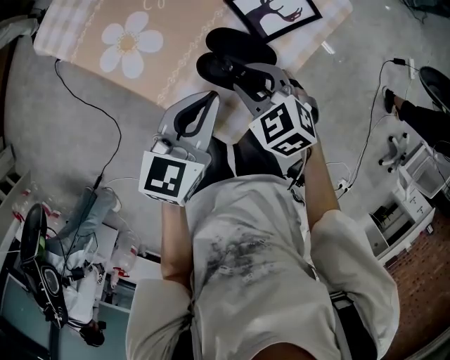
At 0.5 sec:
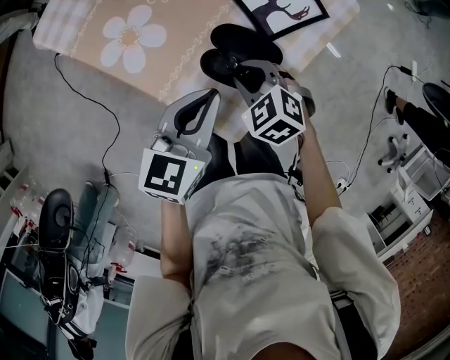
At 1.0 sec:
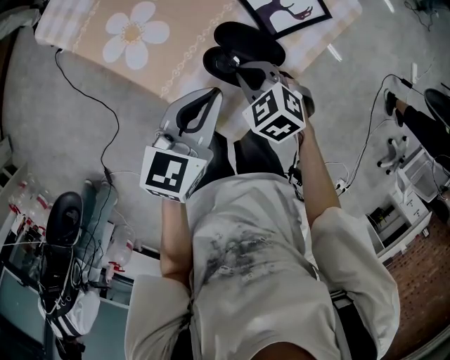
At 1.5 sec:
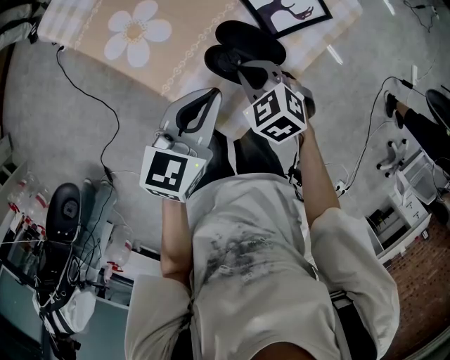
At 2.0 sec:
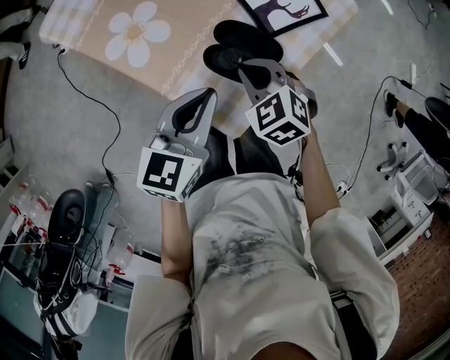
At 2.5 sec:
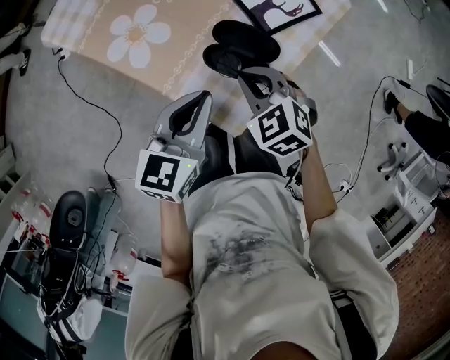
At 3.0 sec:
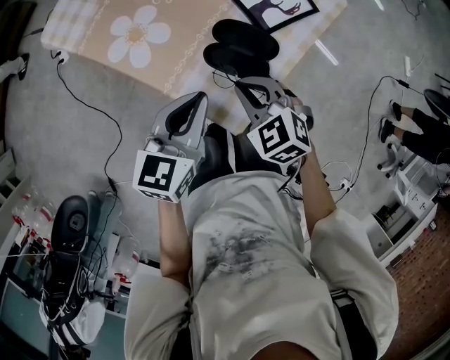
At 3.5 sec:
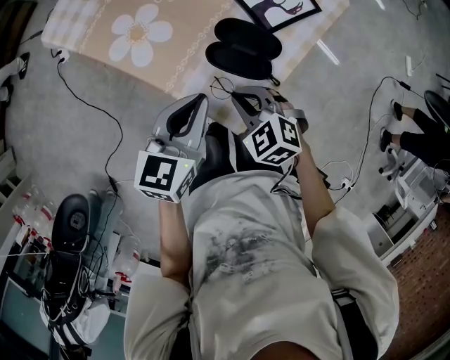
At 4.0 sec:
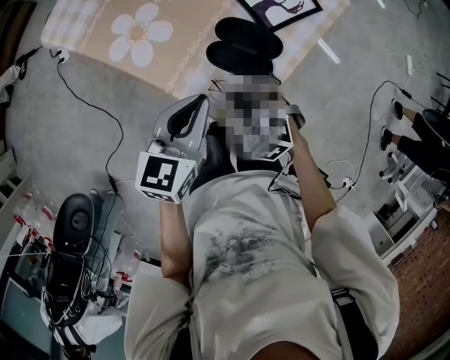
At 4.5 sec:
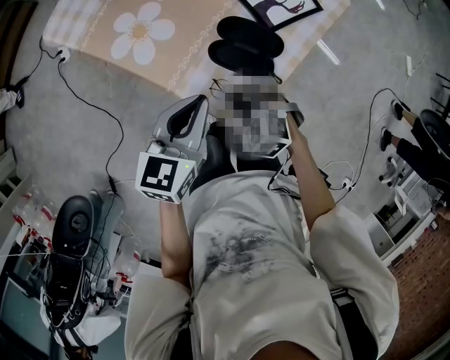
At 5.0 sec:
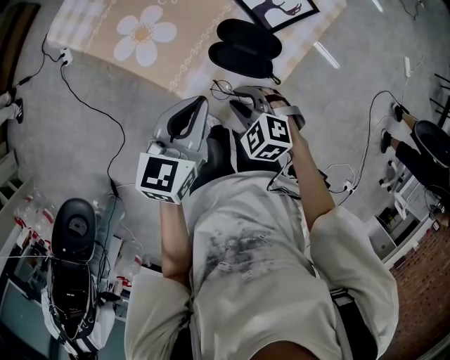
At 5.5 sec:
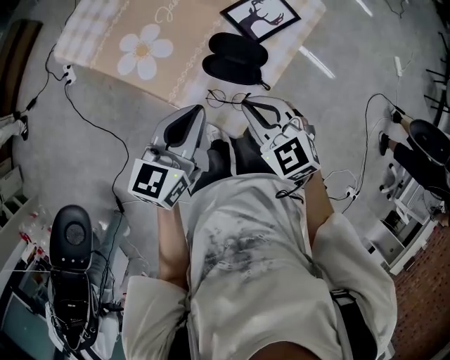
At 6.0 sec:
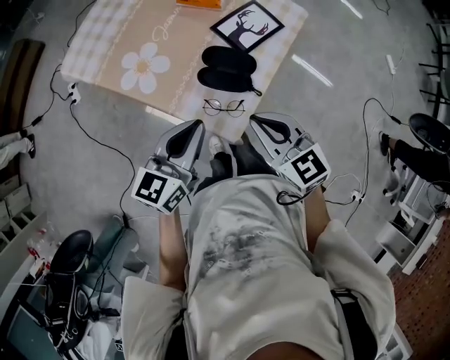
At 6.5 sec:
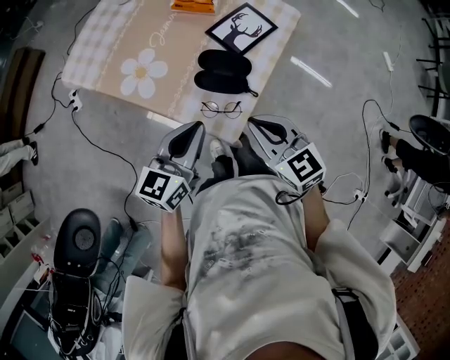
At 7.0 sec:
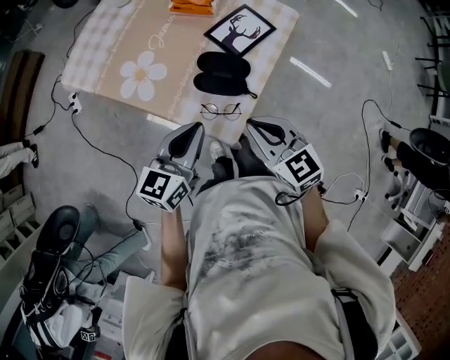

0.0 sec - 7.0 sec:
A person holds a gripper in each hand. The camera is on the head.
0.0 sec - 2.0 sec: The right gripper closes up.
2.0 sec - 3.5 sec: The right gripper moves backward, approximately 10 cm.
3.5 sec - 5.0 sec: The right gripper opens its fingers.
5.0 sec - 7.0 sec: The left gripper heads upward, covering approximately 5 cm, while the right gripper is displaced upward by approximately 15 cm, angles its fingers upward, by roughly 30 degrees, and closes.

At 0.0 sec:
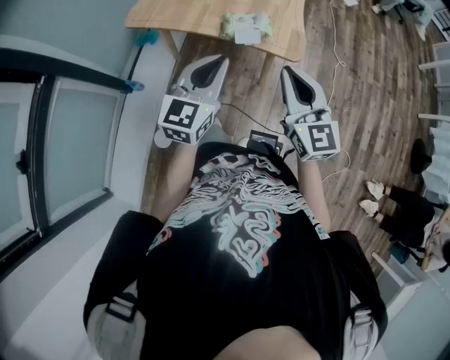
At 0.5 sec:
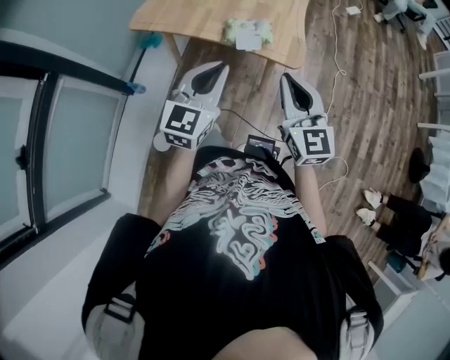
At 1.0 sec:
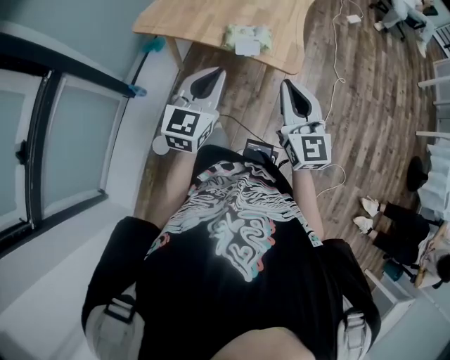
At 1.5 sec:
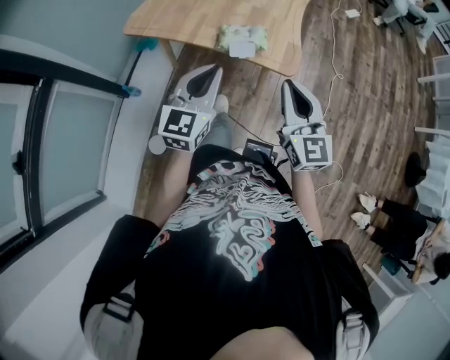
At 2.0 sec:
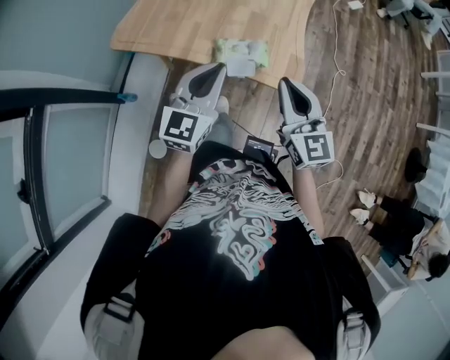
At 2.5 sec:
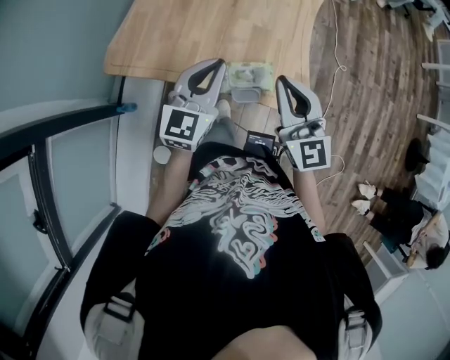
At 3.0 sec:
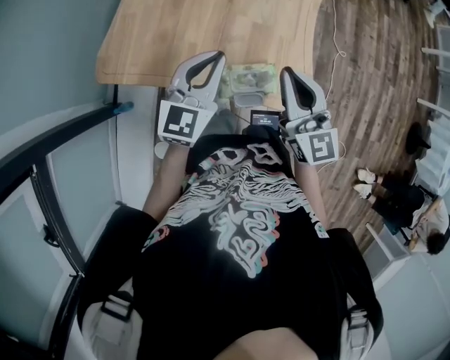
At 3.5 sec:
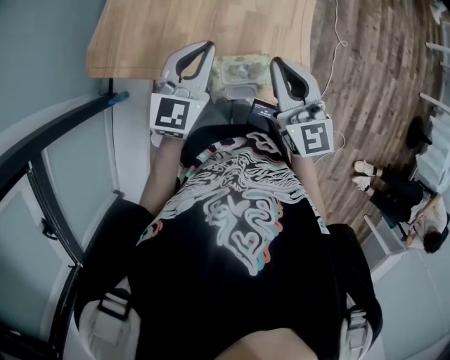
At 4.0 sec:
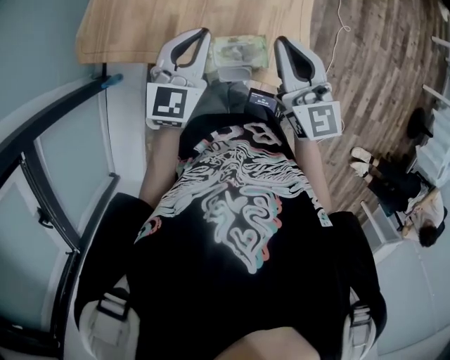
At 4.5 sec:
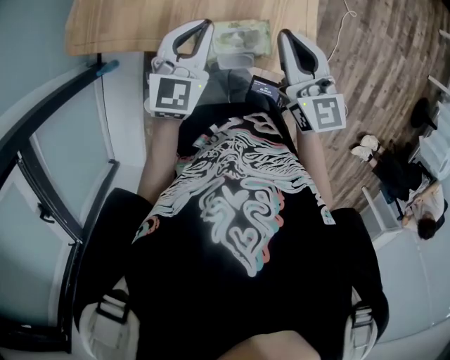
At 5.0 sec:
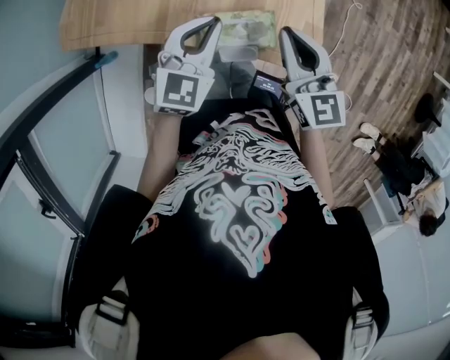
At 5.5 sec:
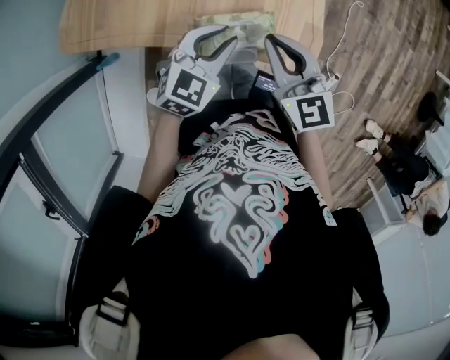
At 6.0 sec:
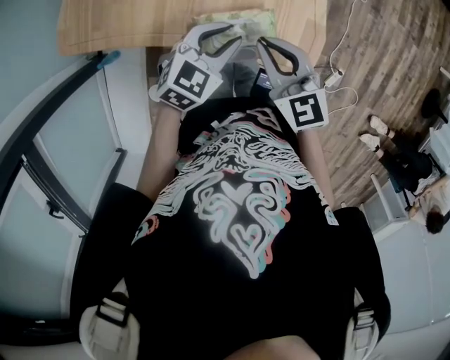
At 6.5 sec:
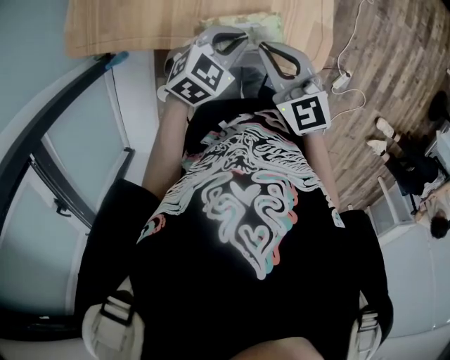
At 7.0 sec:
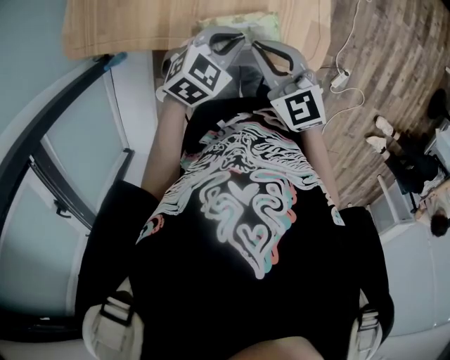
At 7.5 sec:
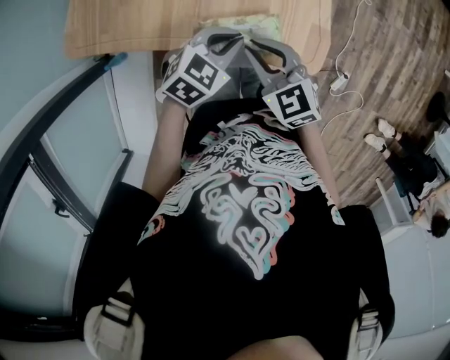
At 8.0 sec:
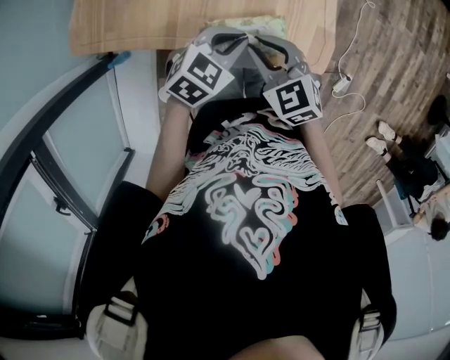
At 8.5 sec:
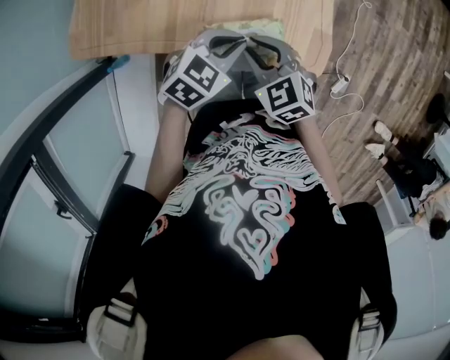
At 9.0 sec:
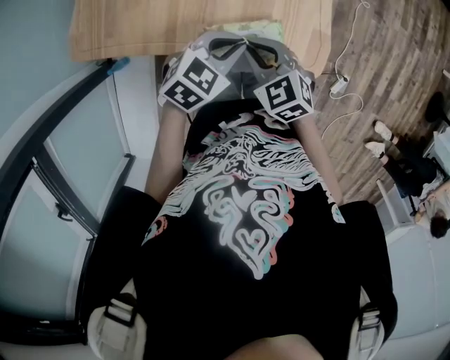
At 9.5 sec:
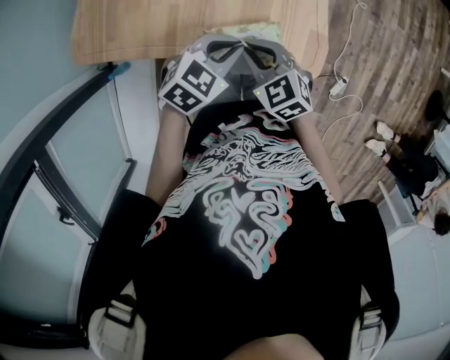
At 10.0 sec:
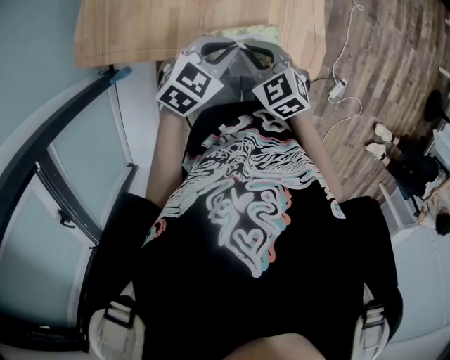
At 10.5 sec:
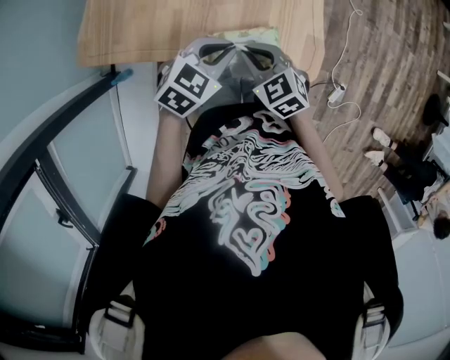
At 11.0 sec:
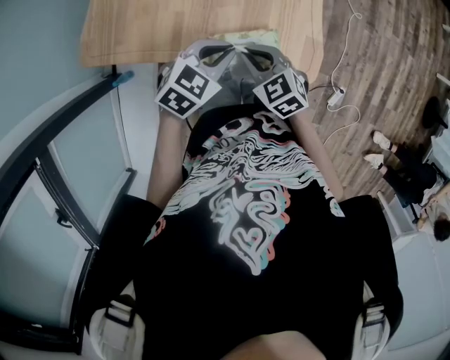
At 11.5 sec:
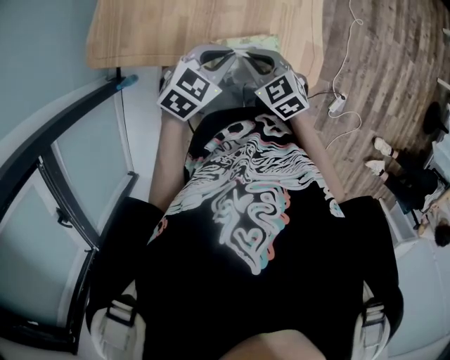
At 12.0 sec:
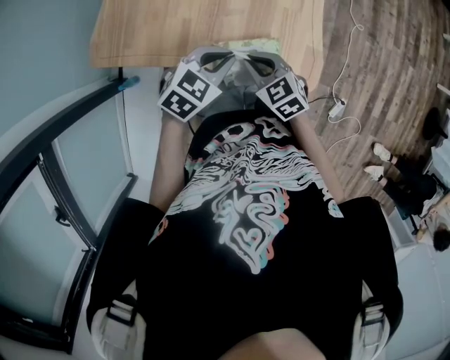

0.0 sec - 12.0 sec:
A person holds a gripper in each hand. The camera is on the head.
0.0 sec - 2.0 sec: The two grippers go some 15 cm forward.
2.0 sec - 4.0 sec: Both grippers move forward, about 20 cm.
4.0 sec - 6.0 sec: The right gripper moves downward, some 10 cm, and changes its angle by roughly 20 degrees, while the left gripper heads downward and to the right, covering some 15 cm, and swivels some 30 degrees.
6.0 sec - 8.0 sec: The right gripper shifts by approximately 5 cm.
8.0 sec - 10.0 sec: There are only small adjustments of the grippers.
10.0 sec - 12.0 sec: The grippers move only a little.

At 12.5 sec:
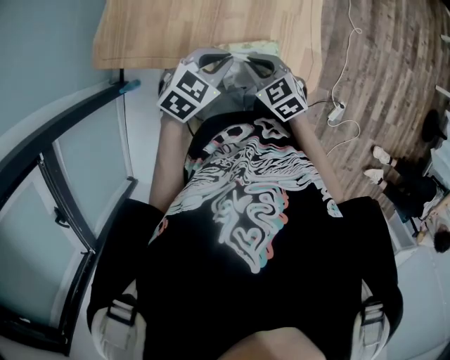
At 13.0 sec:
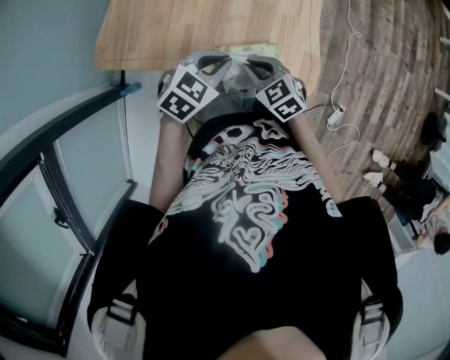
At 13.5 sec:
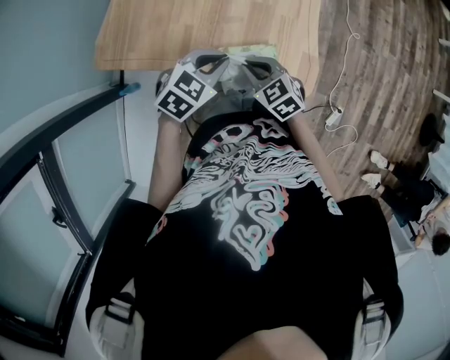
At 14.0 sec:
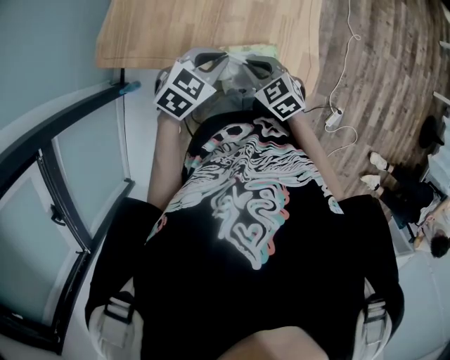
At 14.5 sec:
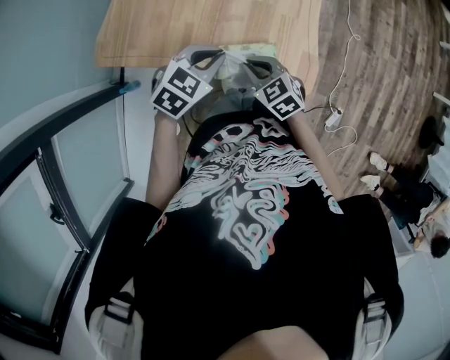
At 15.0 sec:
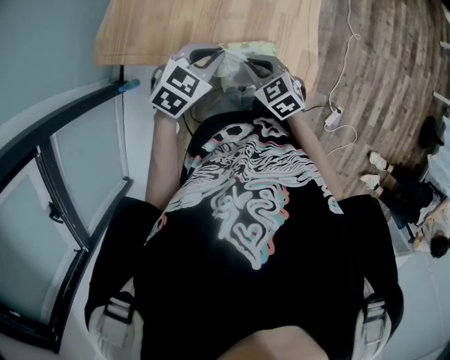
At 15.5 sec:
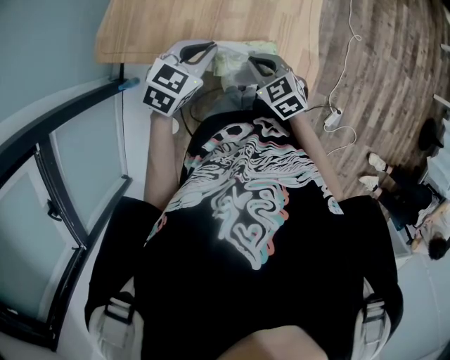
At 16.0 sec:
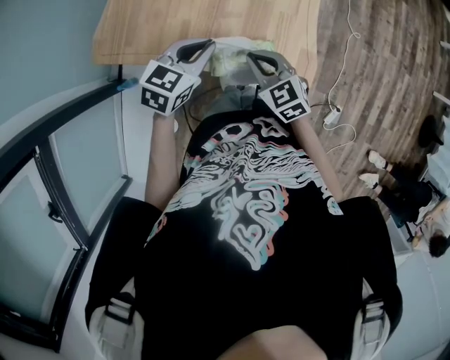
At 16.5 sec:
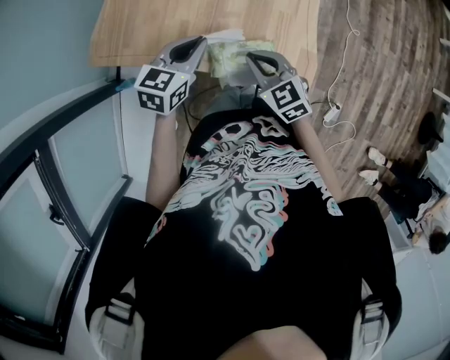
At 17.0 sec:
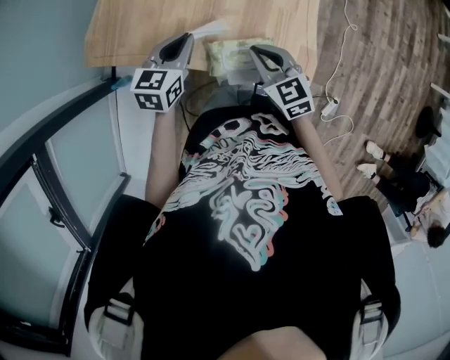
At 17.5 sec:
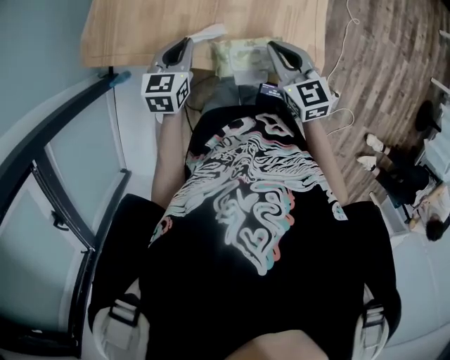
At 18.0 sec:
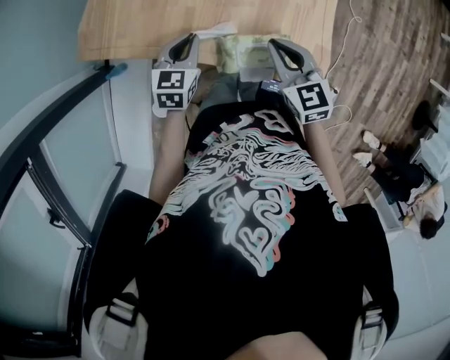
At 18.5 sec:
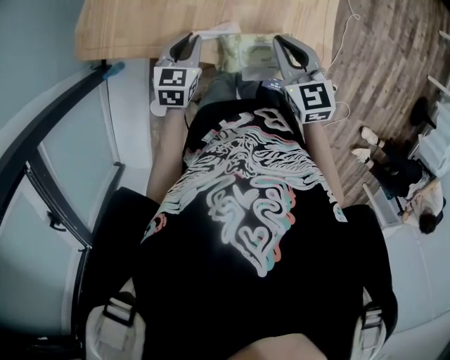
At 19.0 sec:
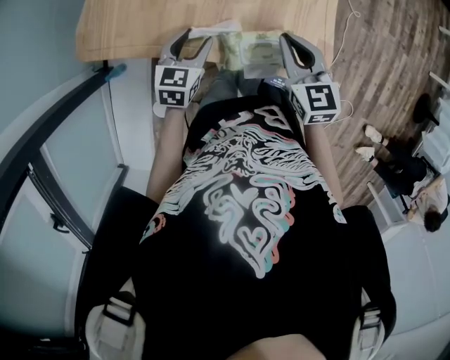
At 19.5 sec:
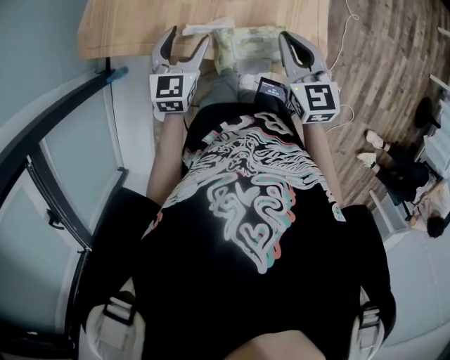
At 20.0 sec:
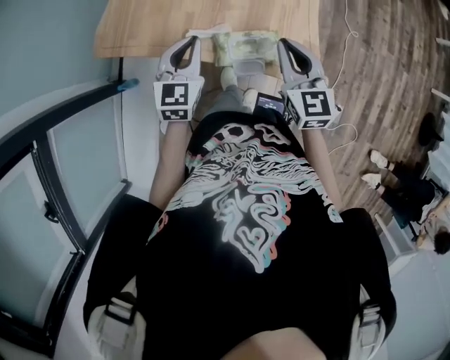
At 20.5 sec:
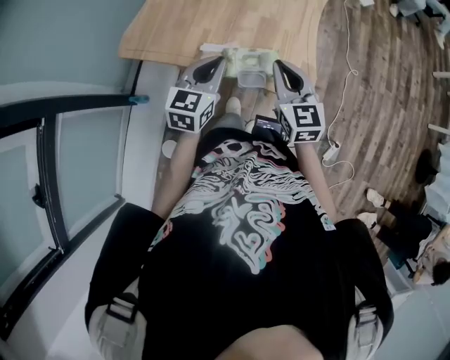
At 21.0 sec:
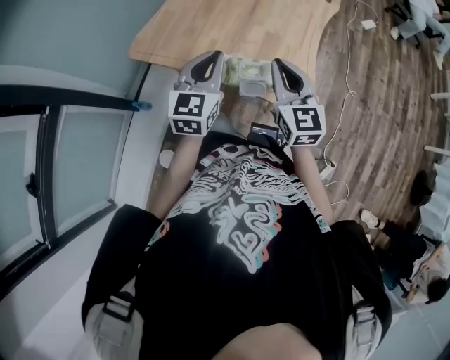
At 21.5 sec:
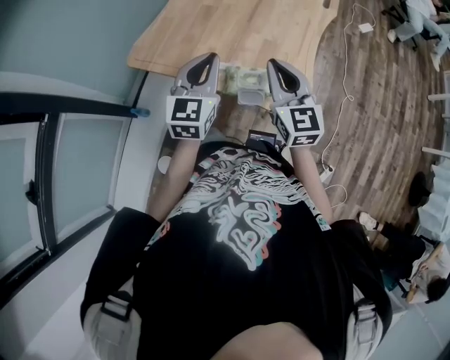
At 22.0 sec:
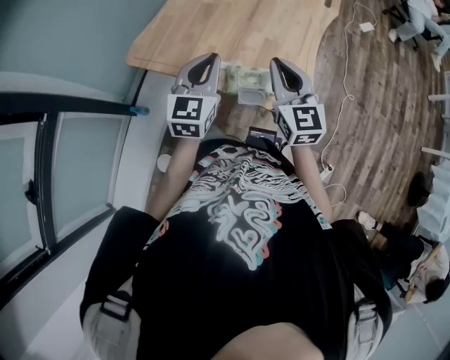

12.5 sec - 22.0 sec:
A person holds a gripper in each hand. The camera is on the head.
12.5 sec - 14.5 sec: The grippers move only a little.
14.5 sec - 16.5 sec: The left gripper ends up roughly 5 cm from where it was, and rotates approximately 30 degrees.
16.5 sec - 18.0 sec: The left gripper is displaced downward and to the left by some 15 cm.
18.0 sec - 20.0 sec: Both grippers move upward, roughly 10 cm. The left gripper changes its angle by roughly 20 degrees, and opens, then closes again.
20.0 sec - 22.0 sec: Both grippers move upward, some 10 cm.
